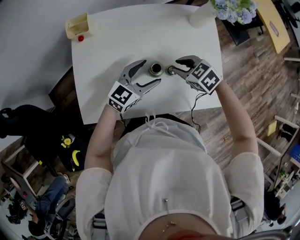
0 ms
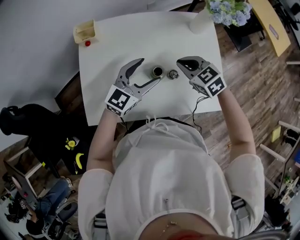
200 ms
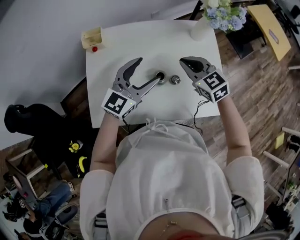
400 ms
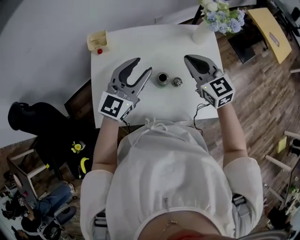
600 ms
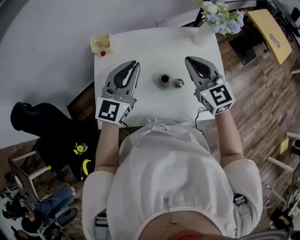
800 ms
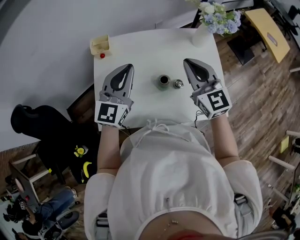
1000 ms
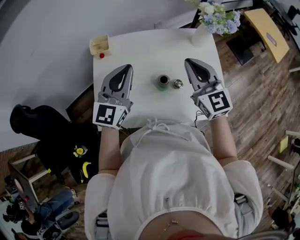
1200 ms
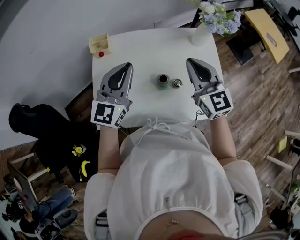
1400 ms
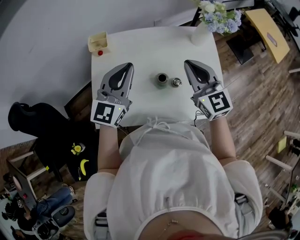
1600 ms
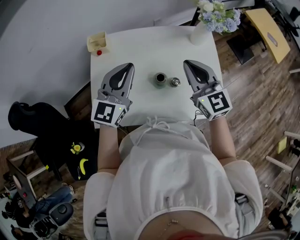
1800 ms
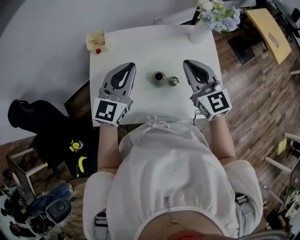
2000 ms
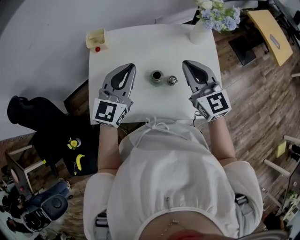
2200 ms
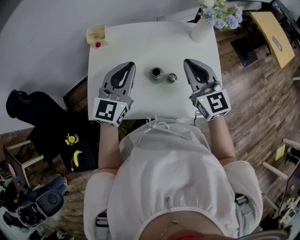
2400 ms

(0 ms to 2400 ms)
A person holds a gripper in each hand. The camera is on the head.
0 ms - 1200 ms: The right gripper heads upward, covering about 25 cm, and tilts its fingers roughly 50 degrees upward. Meanwhile the left gripper is displaced upward and to the left by approximately 25 cm, rotates some 30 degrees, and closes.
1200 ms - 2400 ms: The left gripper shifts by about 5 cm.

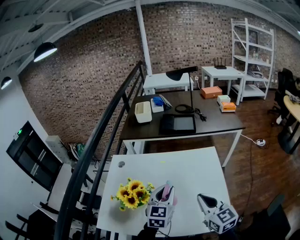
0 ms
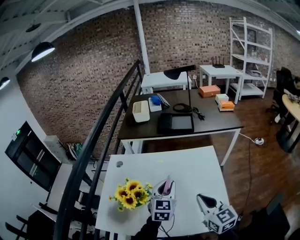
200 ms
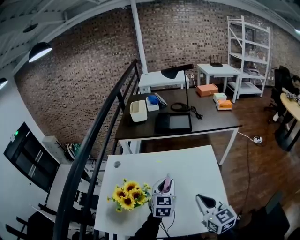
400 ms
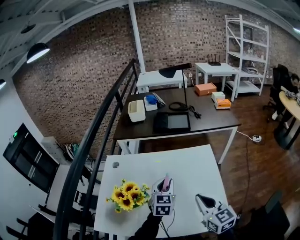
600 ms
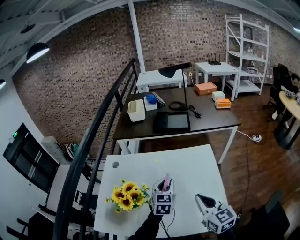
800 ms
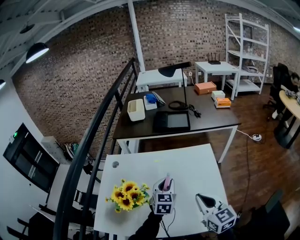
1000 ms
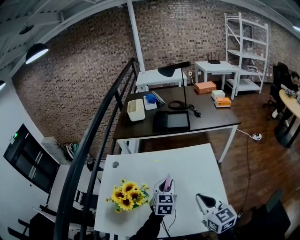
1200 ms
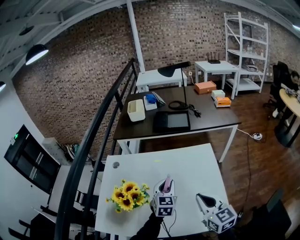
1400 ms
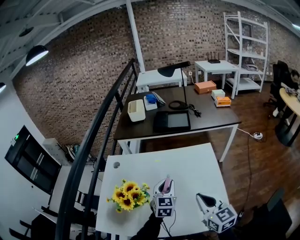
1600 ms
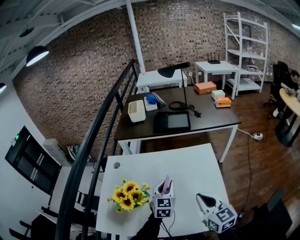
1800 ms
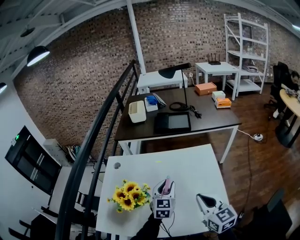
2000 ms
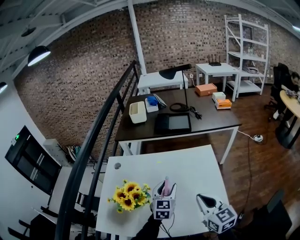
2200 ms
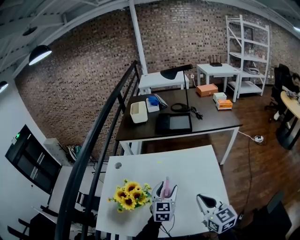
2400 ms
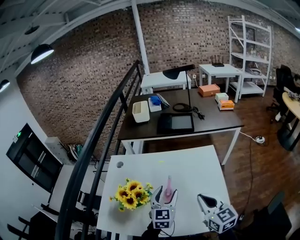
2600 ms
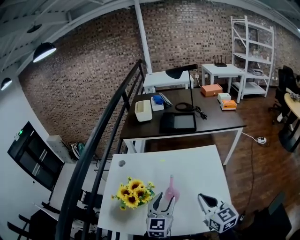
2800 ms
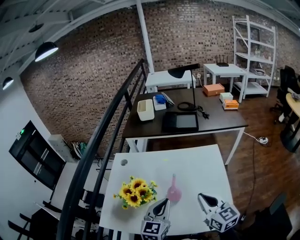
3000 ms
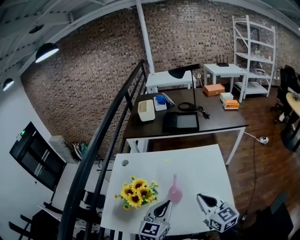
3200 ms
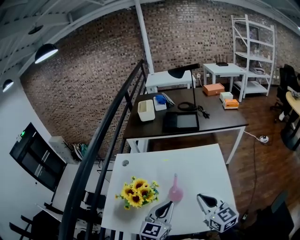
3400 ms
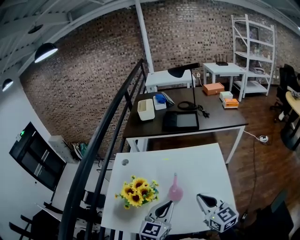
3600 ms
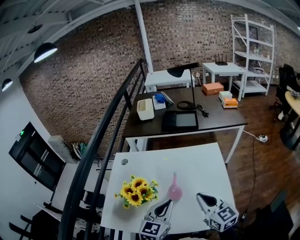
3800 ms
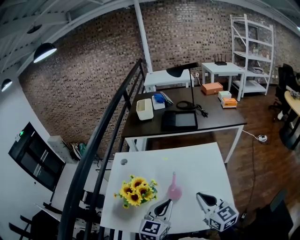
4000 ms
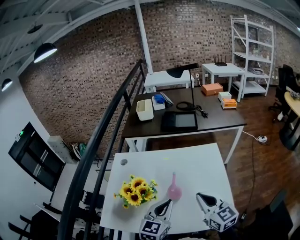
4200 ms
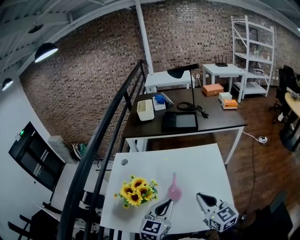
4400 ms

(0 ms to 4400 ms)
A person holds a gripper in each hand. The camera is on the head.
0 ms - 1400 ms: The left gripper is displaced downward and forward by roughly 10 cm.
1400 ms - 3000 ms: The left gripper travels backward, to the left and upward by approximately 15 cm, and closes up.
3000 ms - 4400 ms: The grippers make only small movements.

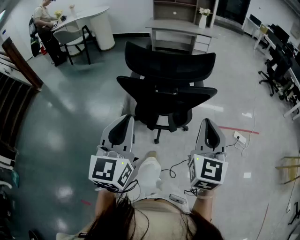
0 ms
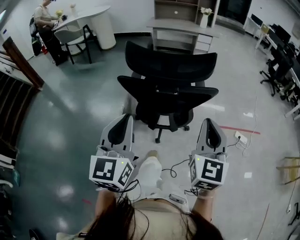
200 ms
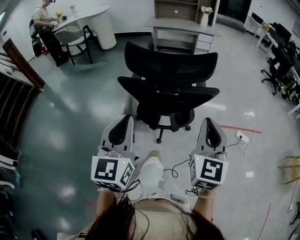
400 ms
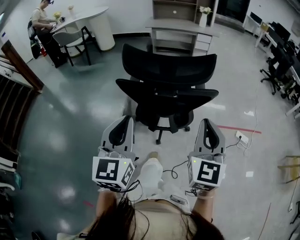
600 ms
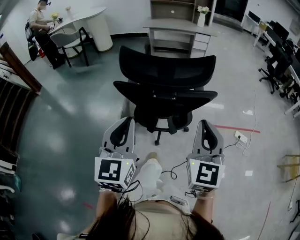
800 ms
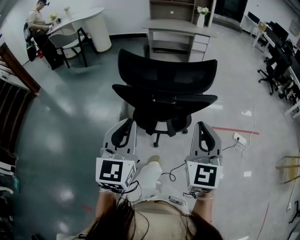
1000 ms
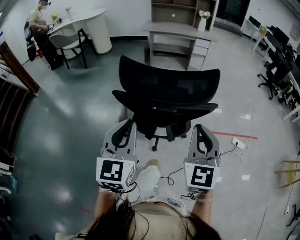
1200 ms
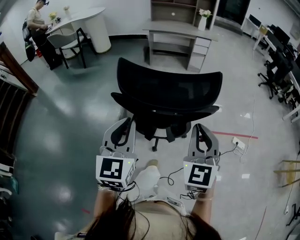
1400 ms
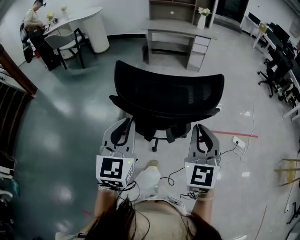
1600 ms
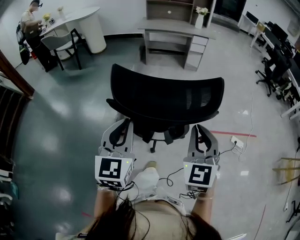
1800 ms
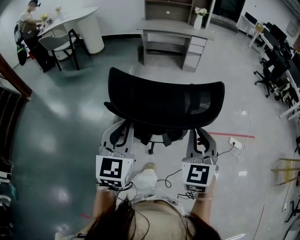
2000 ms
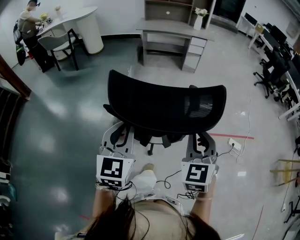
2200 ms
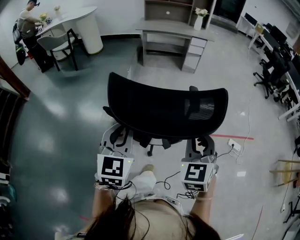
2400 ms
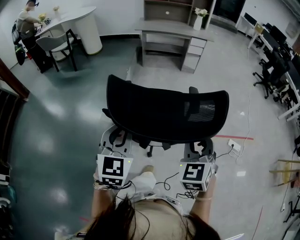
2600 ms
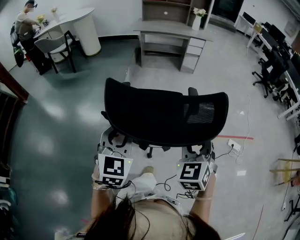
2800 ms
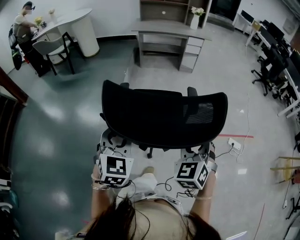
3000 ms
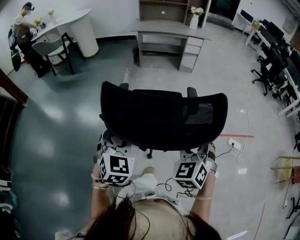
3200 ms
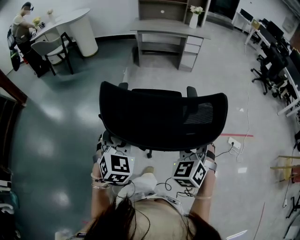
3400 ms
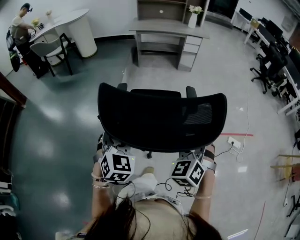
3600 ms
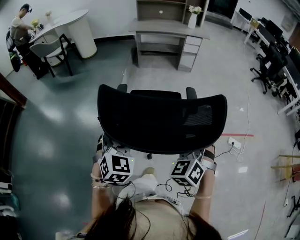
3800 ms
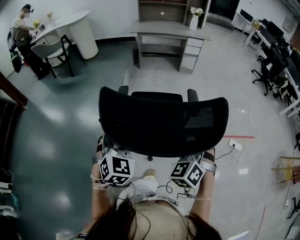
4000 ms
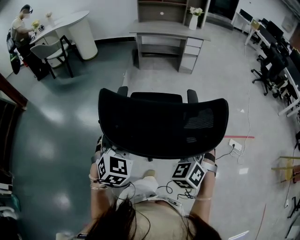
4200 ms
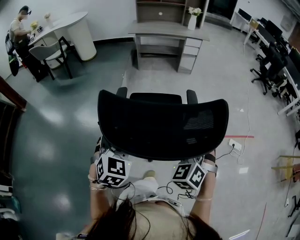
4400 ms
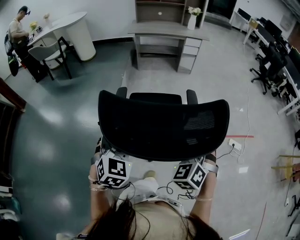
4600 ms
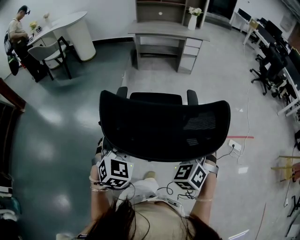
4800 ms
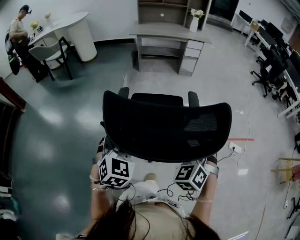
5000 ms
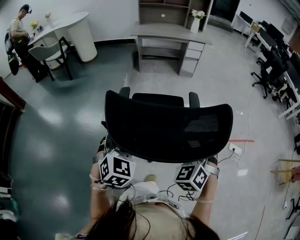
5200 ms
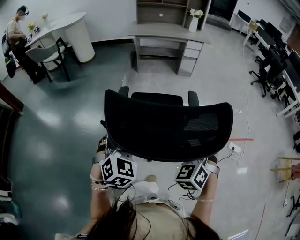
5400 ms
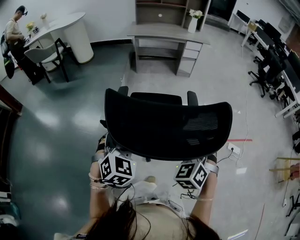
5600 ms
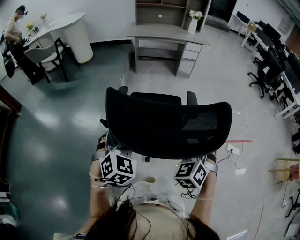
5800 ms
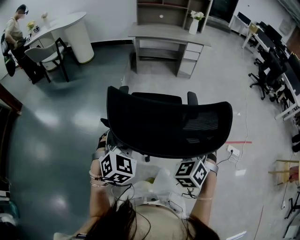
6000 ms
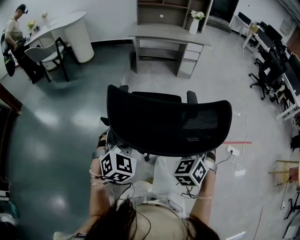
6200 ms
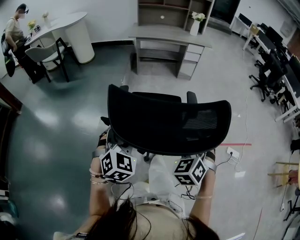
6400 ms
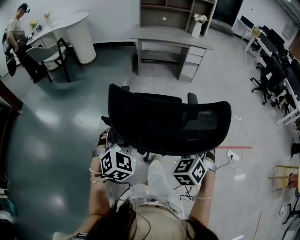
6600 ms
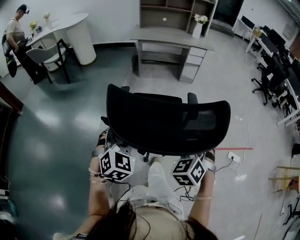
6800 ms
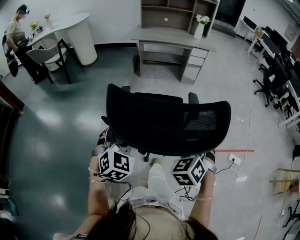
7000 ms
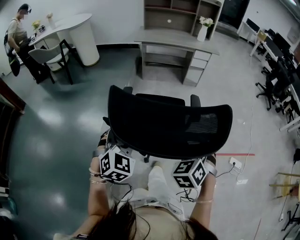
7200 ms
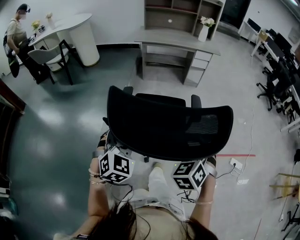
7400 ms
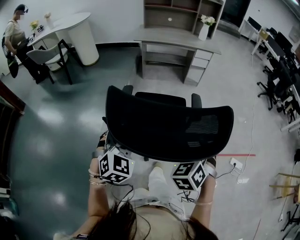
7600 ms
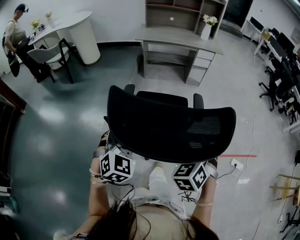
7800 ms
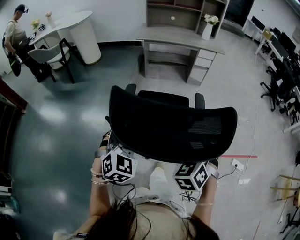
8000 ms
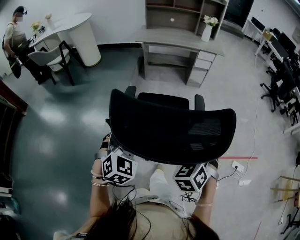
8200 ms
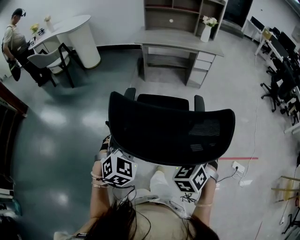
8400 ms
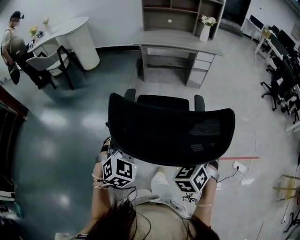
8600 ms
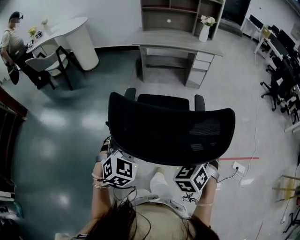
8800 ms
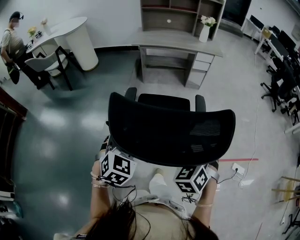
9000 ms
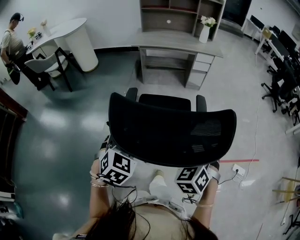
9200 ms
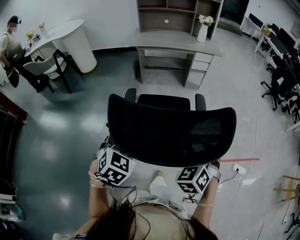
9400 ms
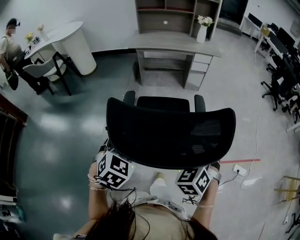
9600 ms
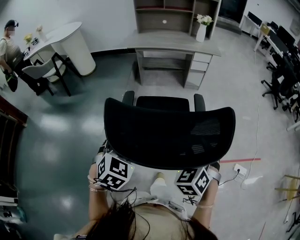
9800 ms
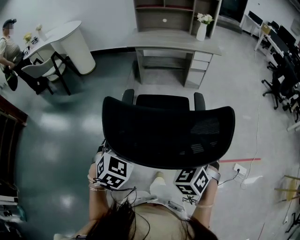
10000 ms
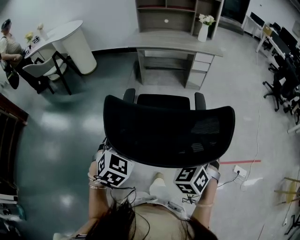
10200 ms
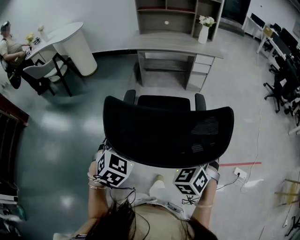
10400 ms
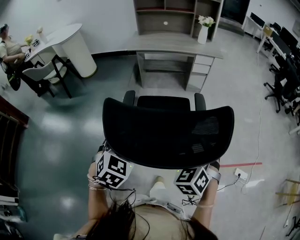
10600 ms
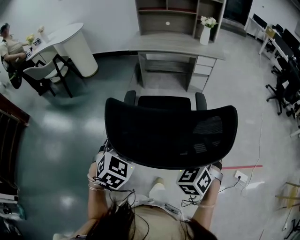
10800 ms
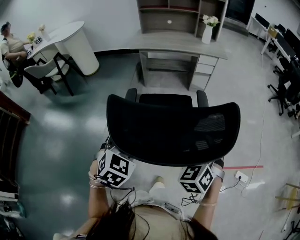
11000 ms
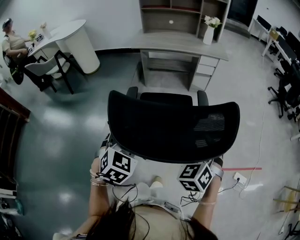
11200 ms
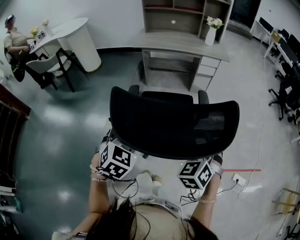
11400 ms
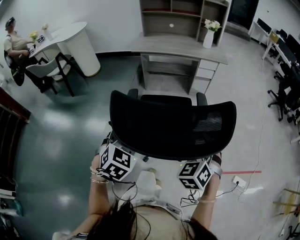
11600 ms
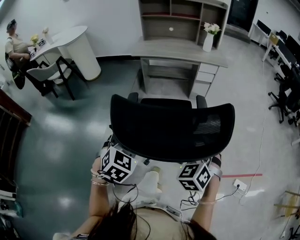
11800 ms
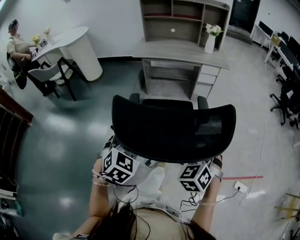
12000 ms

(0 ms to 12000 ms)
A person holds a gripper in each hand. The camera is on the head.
0 ms - 1600 ms: Both grippers move forward, roughly 10 cm.
1600 ms - 3000 ms: The grippers both shift forward and downward by some 10 cm. The left gripper turns by about 20 degrees, and opens; the right gripper turns by about 20 degrees, and opens.
3000 ms - 4400 ms: The grippers move only a little.
4400 ms - 6000 ms: The two grippers go approximately 5 cm forward.
6000 ms - 7600 ms: Both grippers move forward, some 10 cm.
7600 ms - 9000 ms: Both grippers move forward, approximately 5 cm.
9000 ms - 10400 ms: Both grippers travel together forward, approximately 5 cm.
10400 ms - 12000 ms: The two grippers go roughly 10 cm forward.

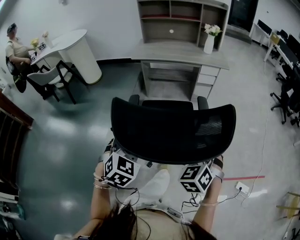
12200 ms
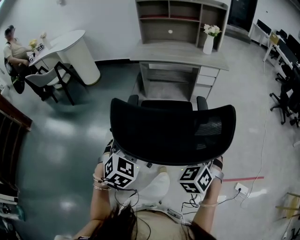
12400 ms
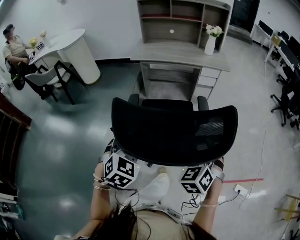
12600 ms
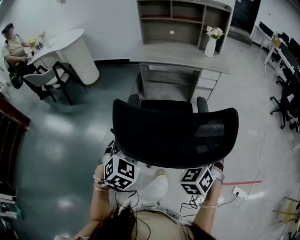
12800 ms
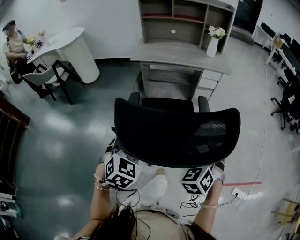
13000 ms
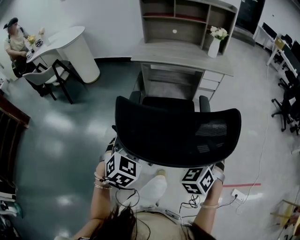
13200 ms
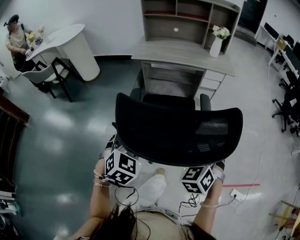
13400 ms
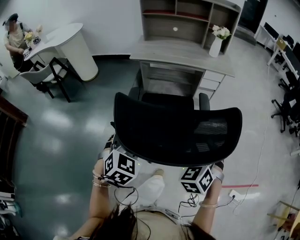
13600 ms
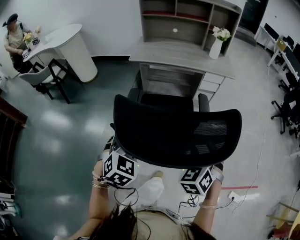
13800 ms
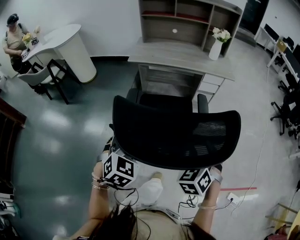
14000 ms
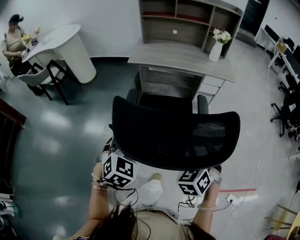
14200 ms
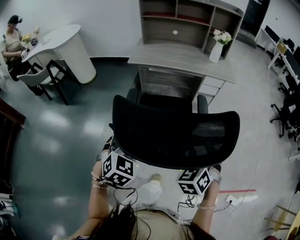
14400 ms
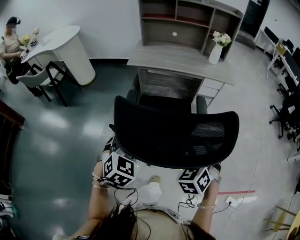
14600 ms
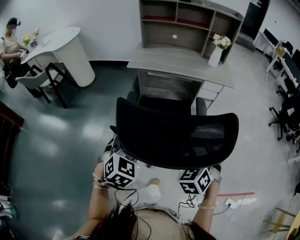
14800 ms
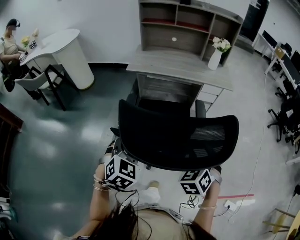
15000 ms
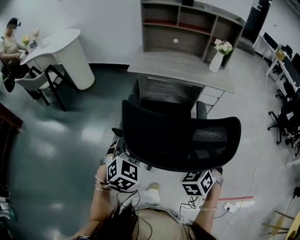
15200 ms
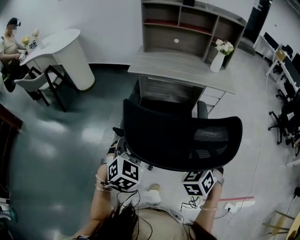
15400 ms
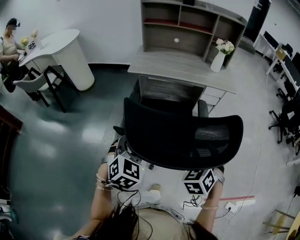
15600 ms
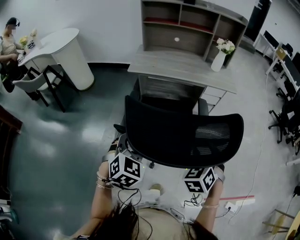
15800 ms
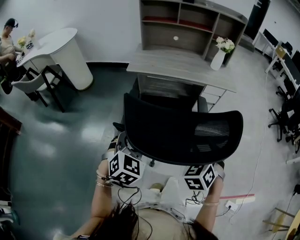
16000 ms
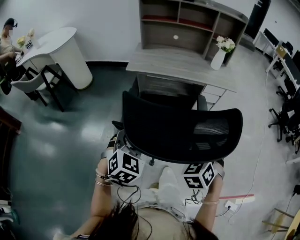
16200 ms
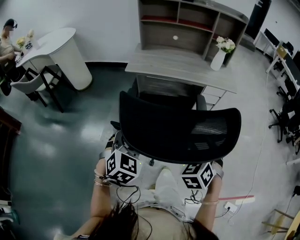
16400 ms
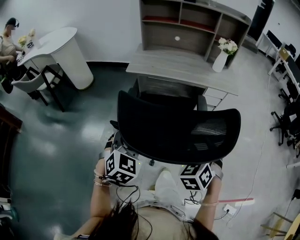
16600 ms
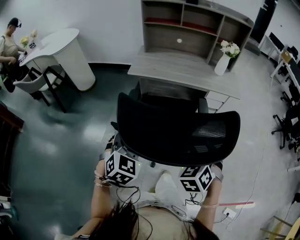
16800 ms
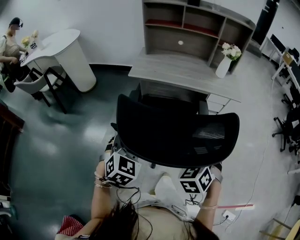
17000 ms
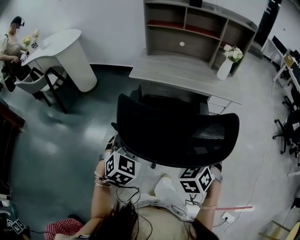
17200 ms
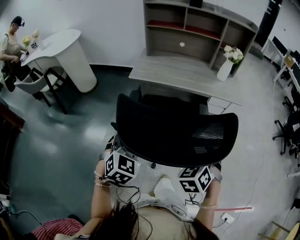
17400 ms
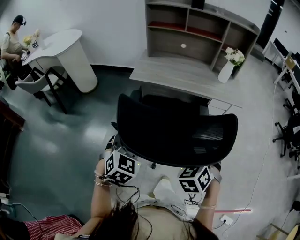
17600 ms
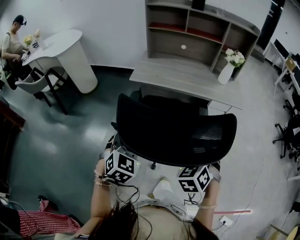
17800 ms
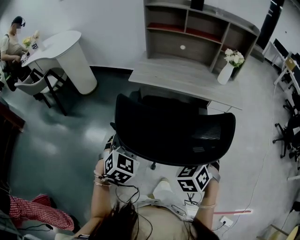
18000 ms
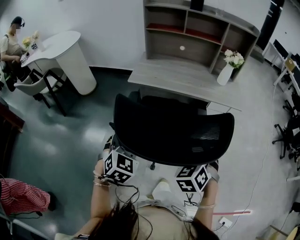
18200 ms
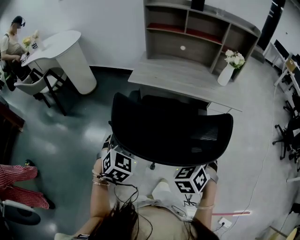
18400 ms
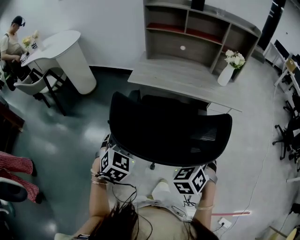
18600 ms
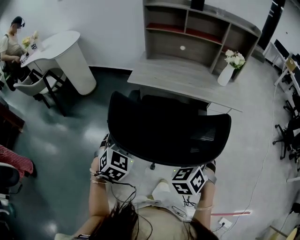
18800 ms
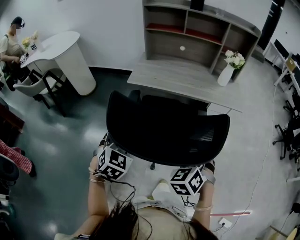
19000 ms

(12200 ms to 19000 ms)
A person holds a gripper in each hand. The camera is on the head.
12200 ms - 13600 ms: Both grippers travel together forward, about 10 cm.
13600 ms - 15000 ms: Both grippers move forward, roughly 5 cm.
15000 ms - 16200 ms: Both grippers move forward, some 5 cm.
16200 ms - 17600 ms: The grippers both shift forward by some 10 cm.
17600 ms - 19000 ms: There are only small adjustments of the grippers.
